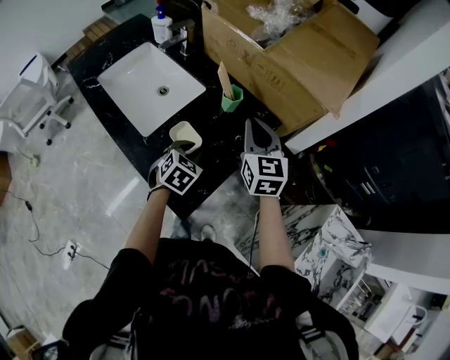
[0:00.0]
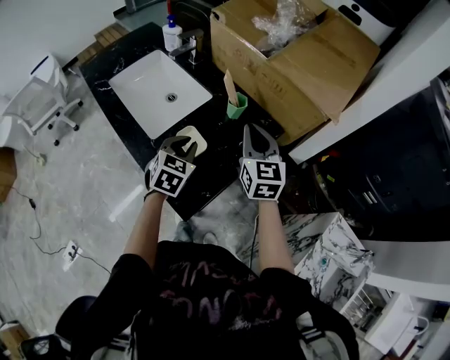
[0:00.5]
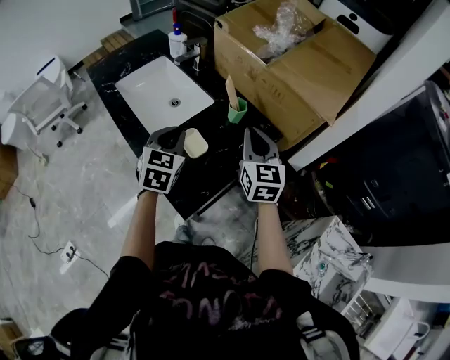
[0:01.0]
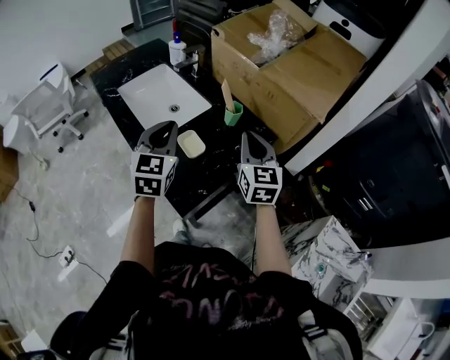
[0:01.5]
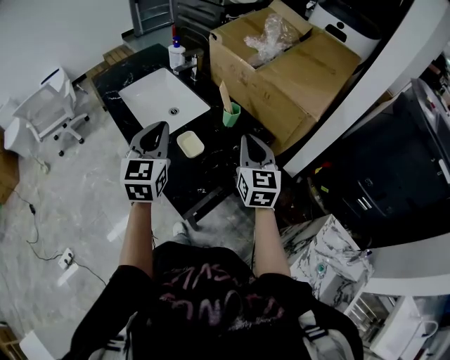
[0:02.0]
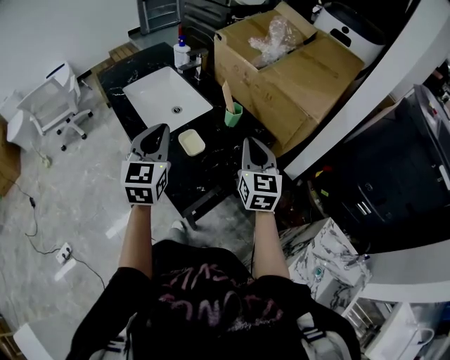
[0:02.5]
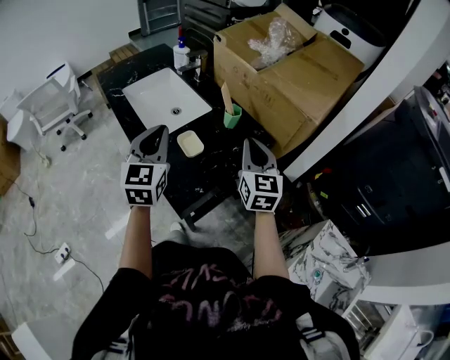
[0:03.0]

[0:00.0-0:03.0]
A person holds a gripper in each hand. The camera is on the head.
0:00.0 to 0:01.5: The right gripper moves backward, approximately 5 cm. Meanwhile the left gripper moves upward, some 20 cm, and angles its fingers upward, by about 30 degrees.
0:01.5 to 0:03.0: The left gripper moves approximately 5 cm.

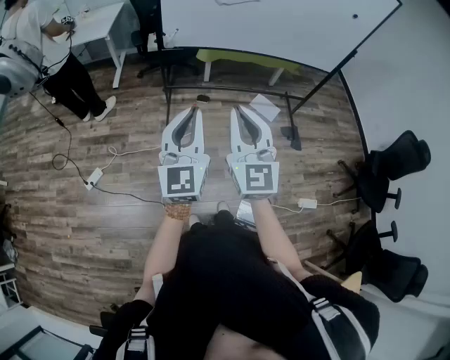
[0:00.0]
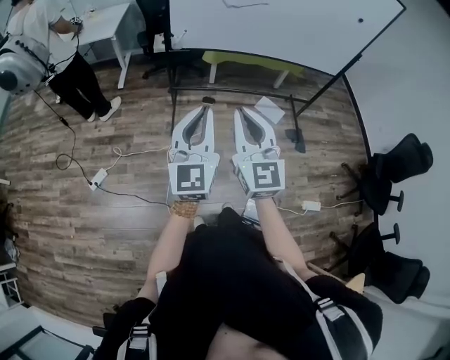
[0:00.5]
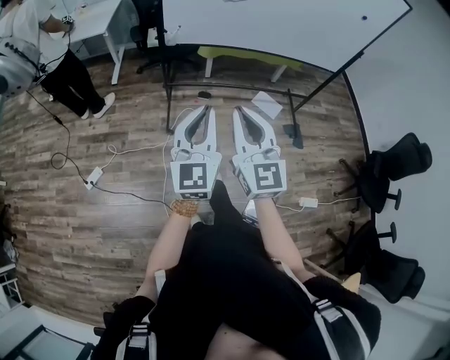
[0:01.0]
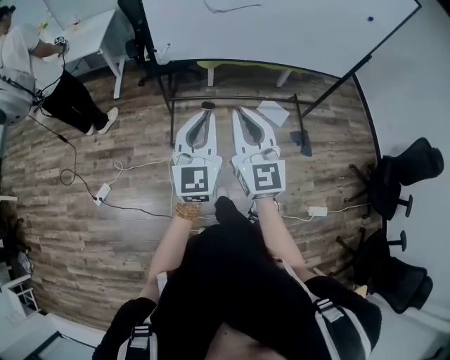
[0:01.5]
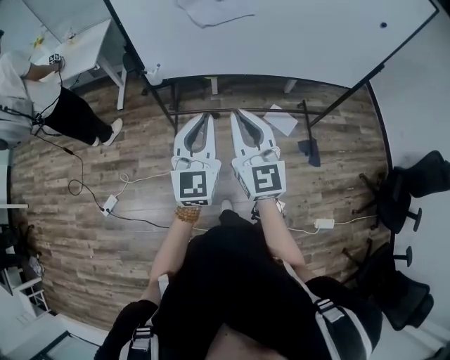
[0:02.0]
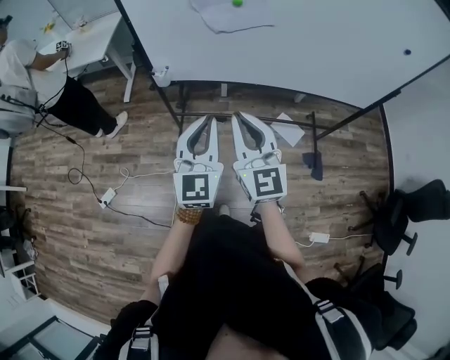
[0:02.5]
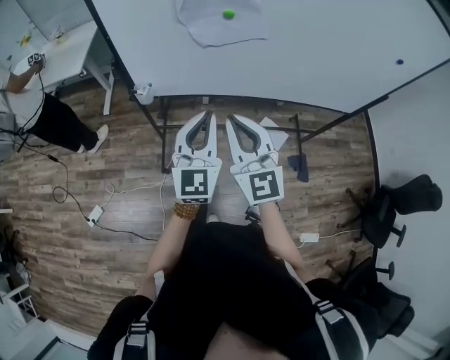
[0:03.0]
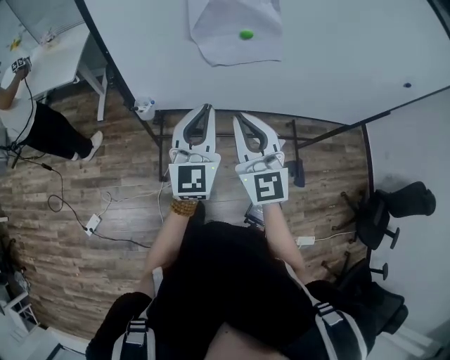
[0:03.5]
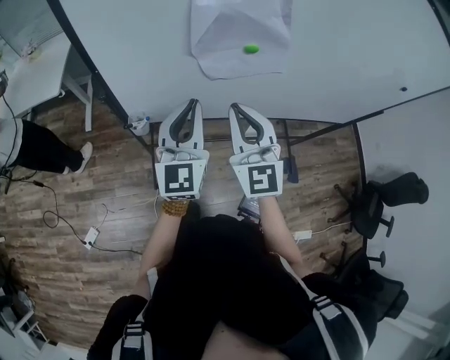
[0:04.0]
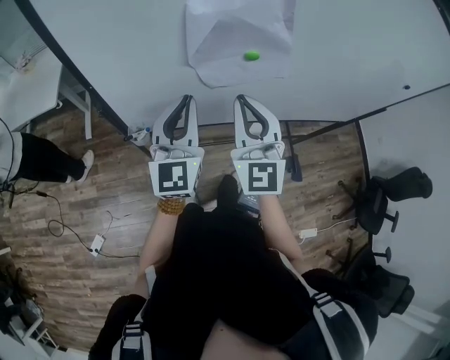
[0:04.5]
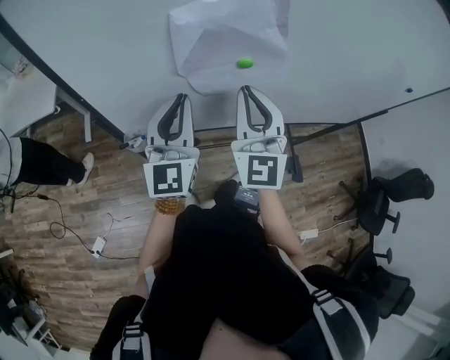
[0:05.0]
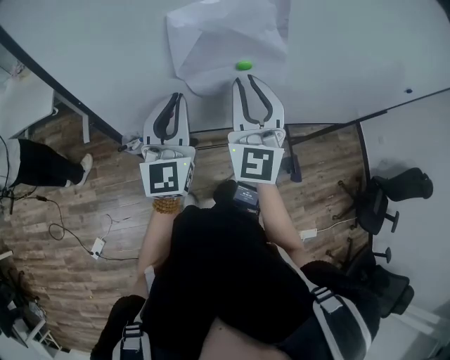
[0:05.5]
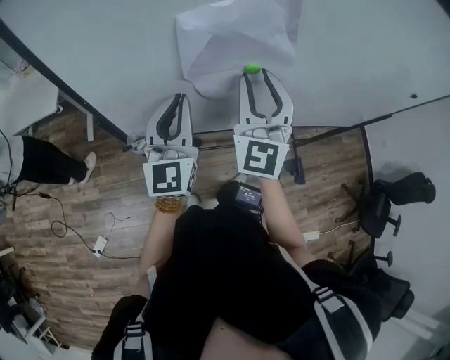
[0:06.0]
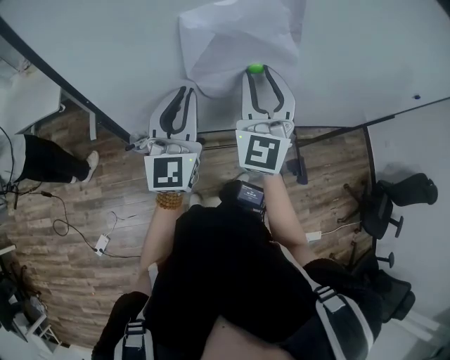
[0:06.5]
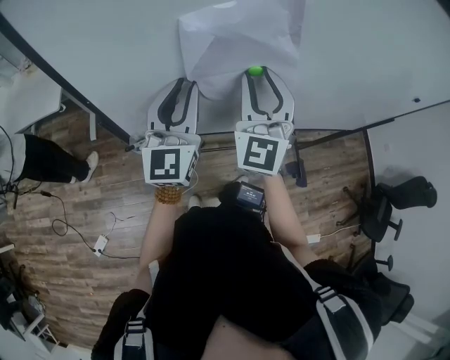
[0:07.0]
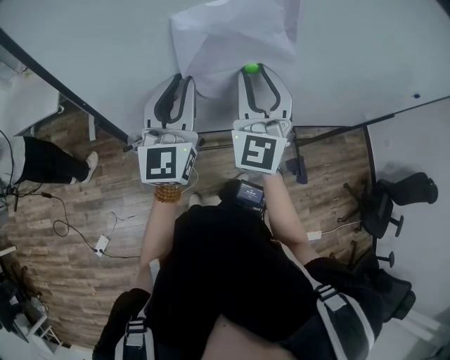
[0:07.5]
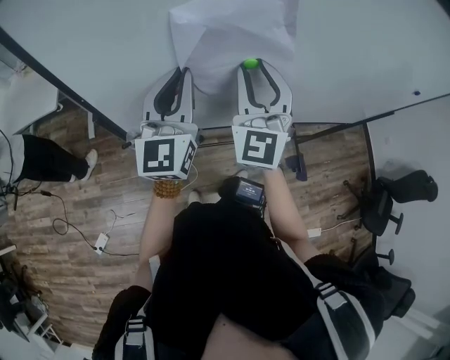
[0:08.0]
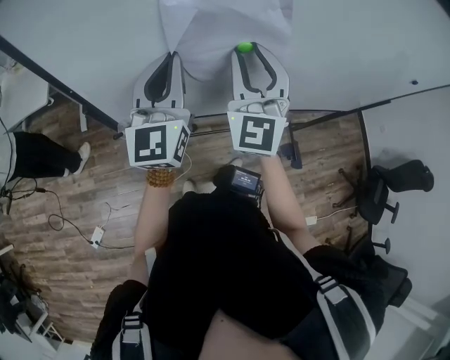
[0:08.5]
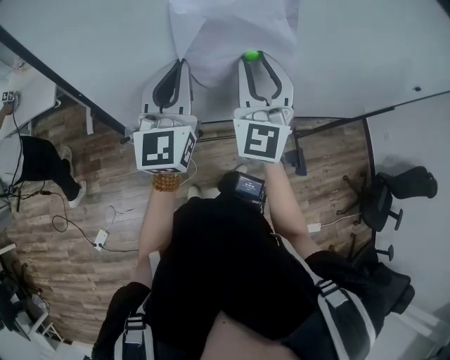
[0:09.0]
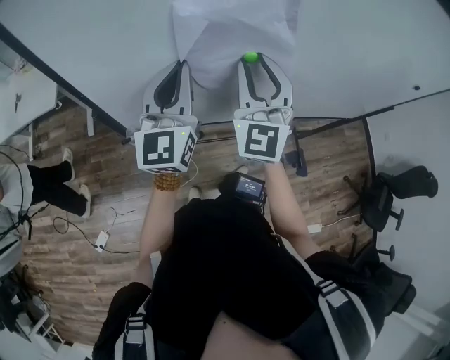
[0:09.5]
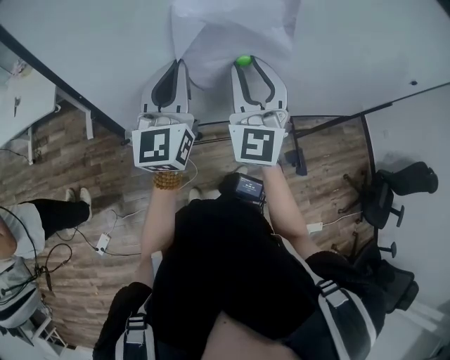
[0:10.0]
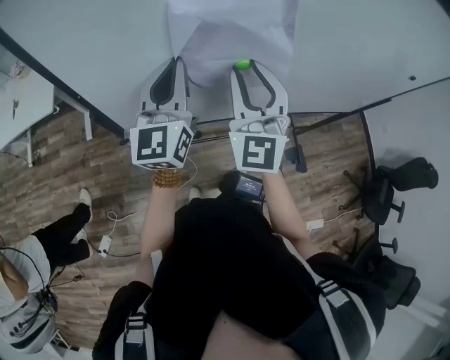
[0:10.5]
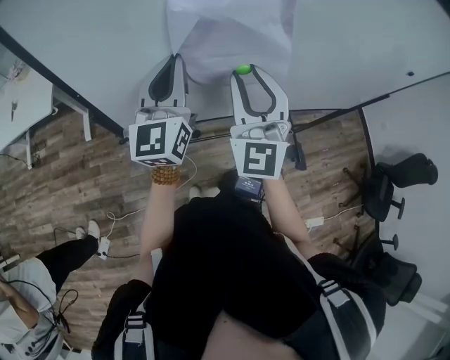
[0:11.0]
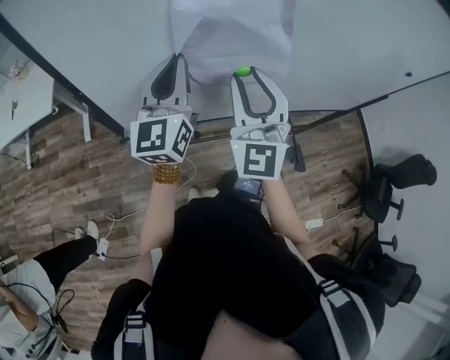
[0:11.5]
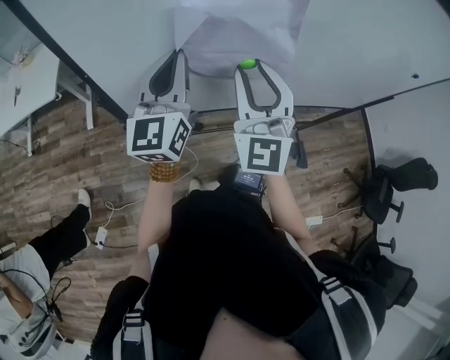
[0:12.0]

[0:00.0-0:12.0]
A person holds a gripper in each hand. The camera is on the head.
0:00.0 to 0:02.0: The left gripper heads forward and to the right, covering roughly 30 cm. The right gripper travels forward by roughly 30 cm.
0:02.0 to 0:04.0: The two grippers go approximately 30 cm forward.
0:04.0 to 0:06.0: The grippers both shift forward by roughly 10 cm. The right gripper changes its angle by roughly 20 degrees, and opens its fingers.
0:06.0 to 0:10.0: The grippers move only a little.
0:10.0 to 0:12.0: The right gripper goes approximately 5 cm backward.

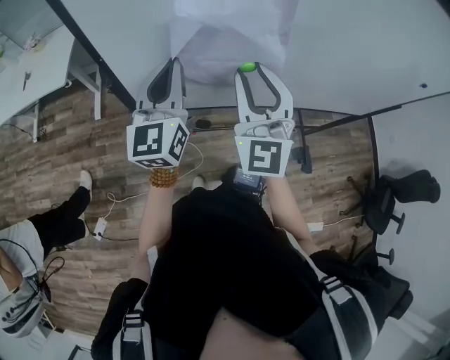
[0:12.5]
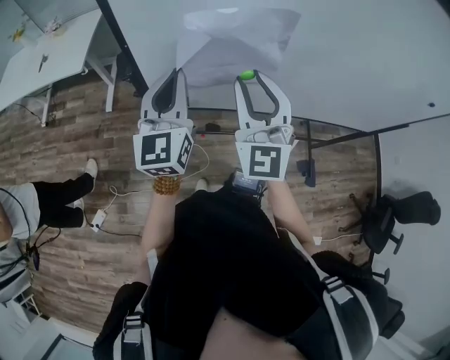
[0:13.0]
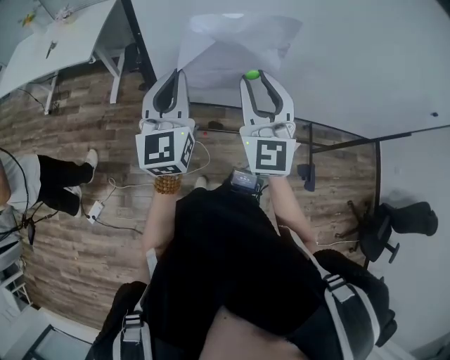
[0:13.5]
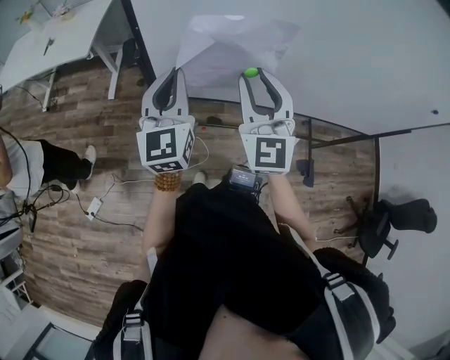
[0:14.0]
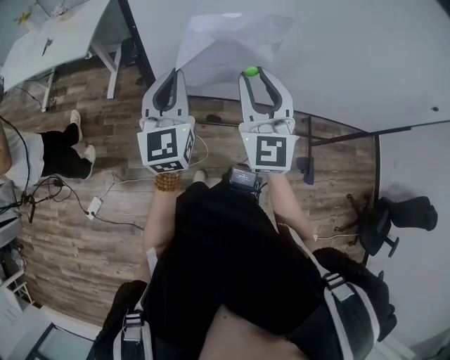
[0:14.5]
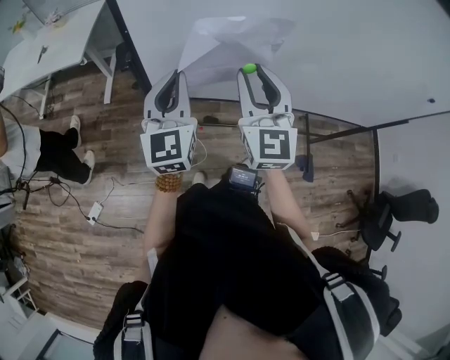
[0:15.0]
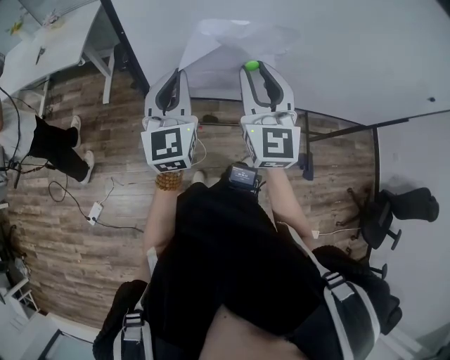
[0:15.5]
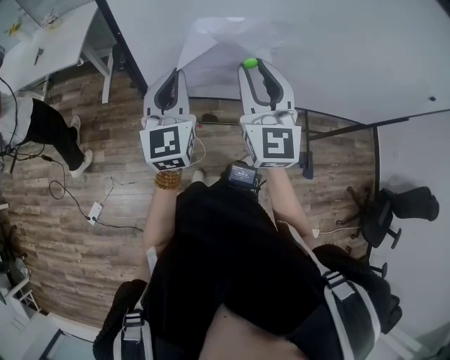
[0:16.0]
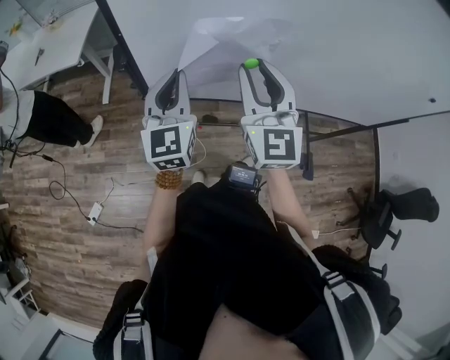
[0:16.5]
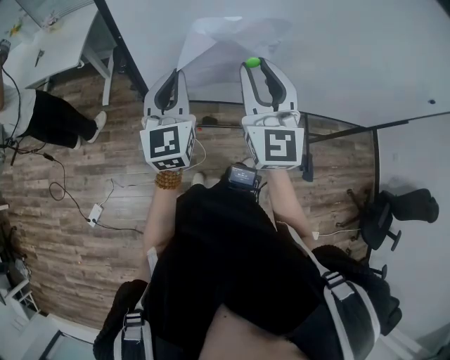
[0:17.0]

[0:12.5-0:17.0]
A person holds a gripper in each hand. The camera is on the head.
0:12.5 to 0:14.5: The left gripper is displaced to the left by approximately 5 cm, while the right gripper changes place by about 5 cm.
0:14.5 to 0:17.0: There are only small adjustments of the grippers.

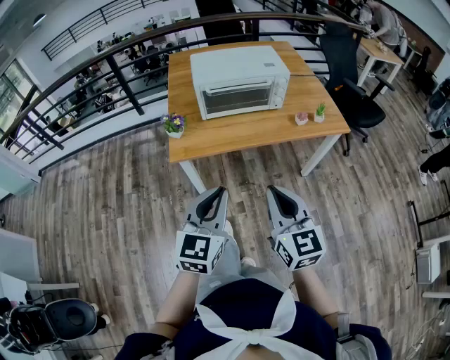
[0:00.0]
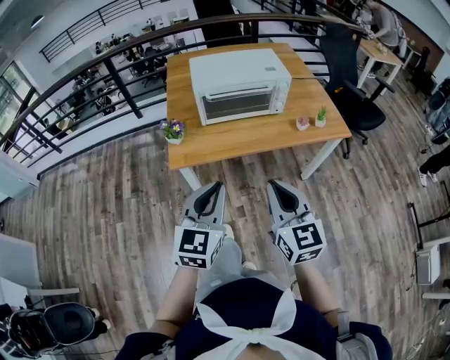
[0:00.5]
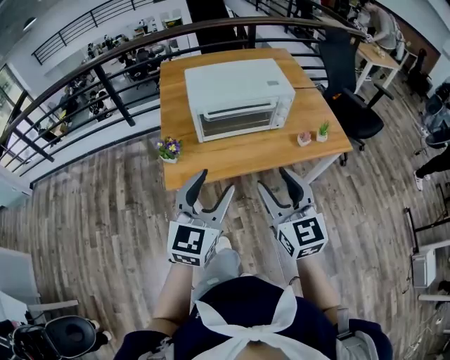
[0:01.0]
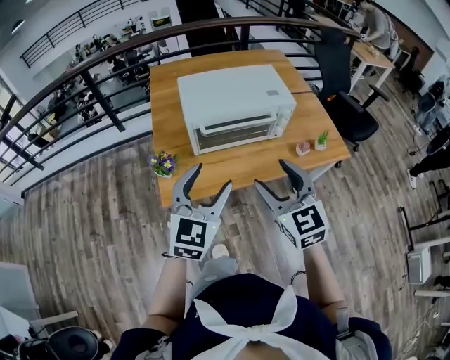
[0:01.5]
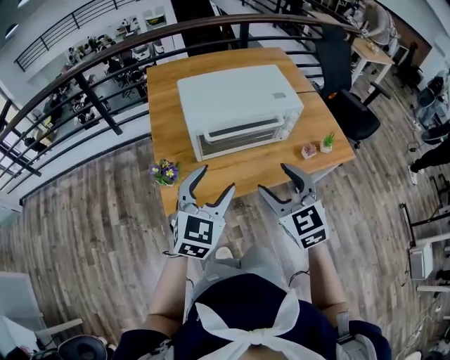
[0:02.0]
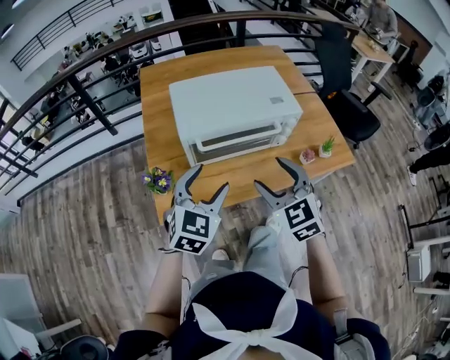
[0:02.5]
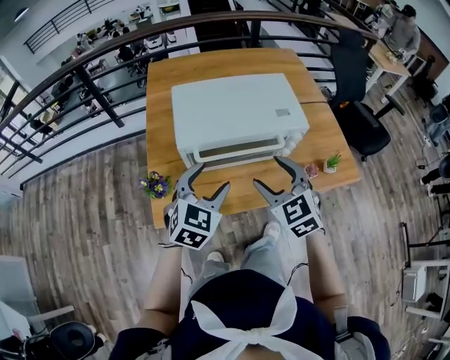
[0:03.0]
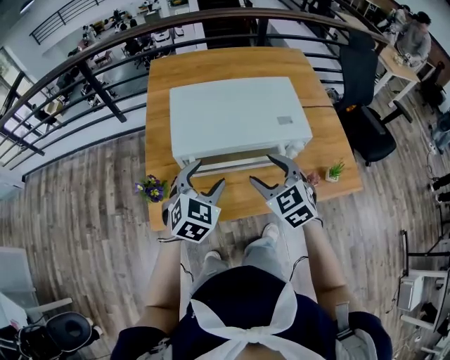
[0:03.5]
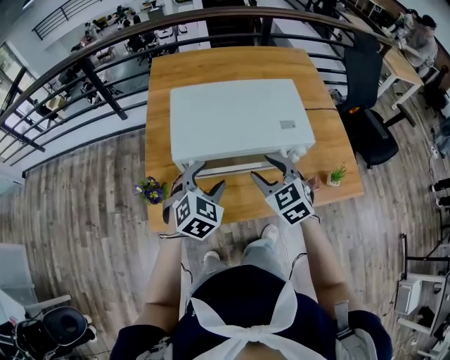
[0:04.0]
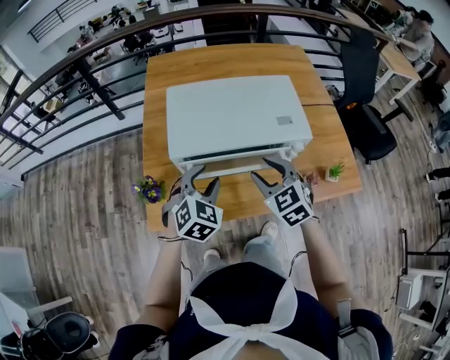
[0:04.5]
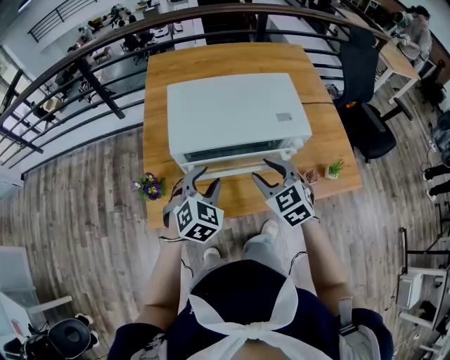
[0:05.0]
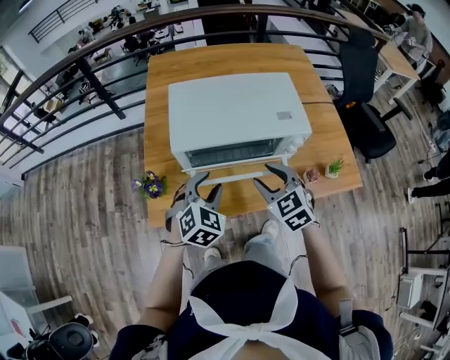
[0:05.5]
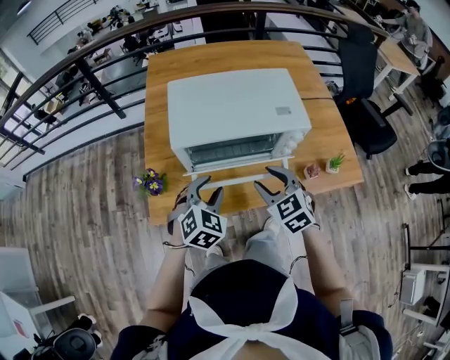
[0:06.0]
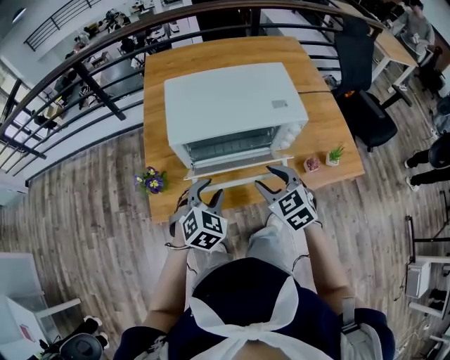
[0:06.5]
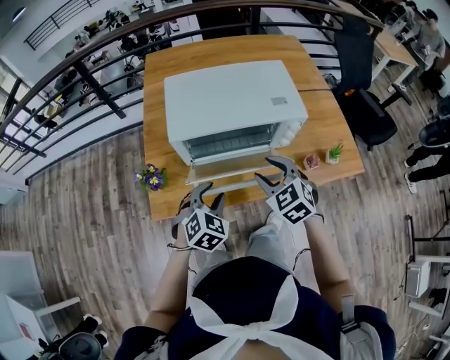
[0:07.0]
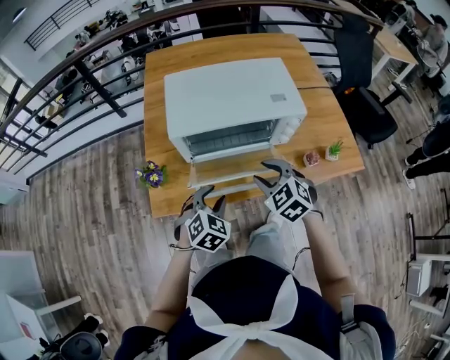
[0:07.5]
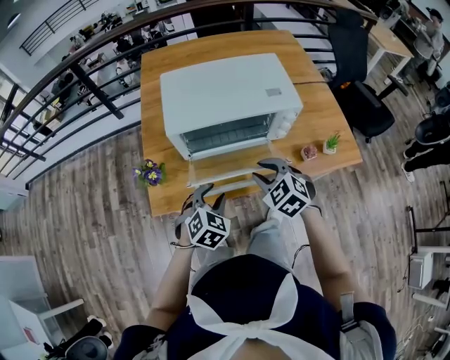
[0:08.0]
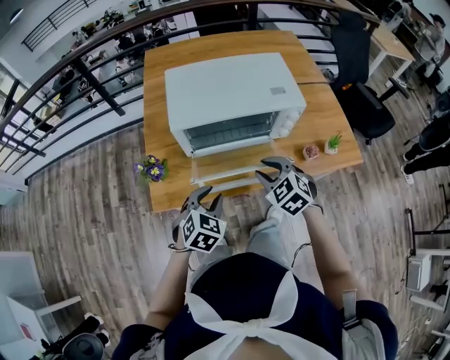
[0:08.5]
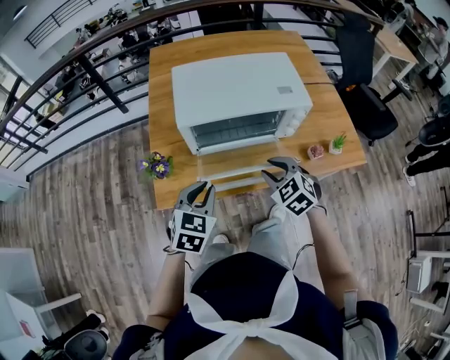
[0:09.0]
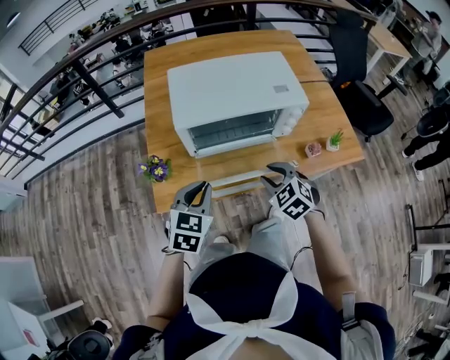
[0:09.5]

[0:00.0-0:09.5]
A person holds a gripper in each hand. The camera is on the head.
0:00.0 to 0:02.0: Both grippers travel together forward, about 25 cm. The left gripper opens up; the right gripper turns by some 20 degrees, and opens its fingers.
0:02.0 to 0:04.0: Both grippers travel together forward and downward, some 20 cm. The left gripper turns by some 20 degrees.
0:04.0 to 0:05.5: The left gripper closes up.
0:05.5 to 0:07.5: The left gripper shifts some 10 cm backward and downward; the right gripper changes place by some 5 cm.
0:07.5 to 0:09.5: The left gripper is displaced upward and to the left by roughly 10 cm, swivels about 20 degrees, and closes its fingers.
